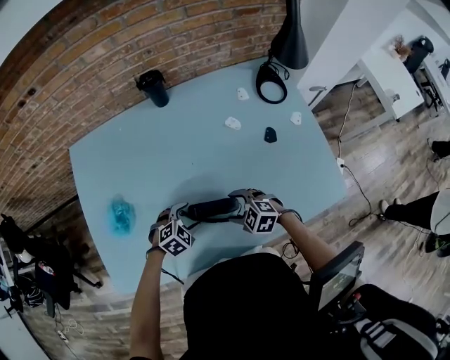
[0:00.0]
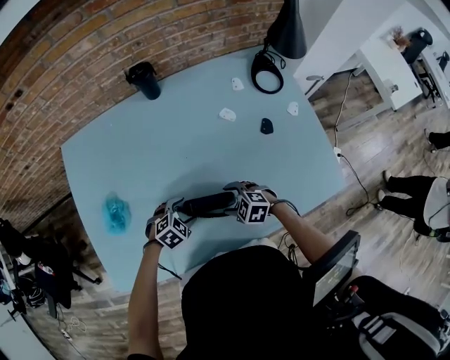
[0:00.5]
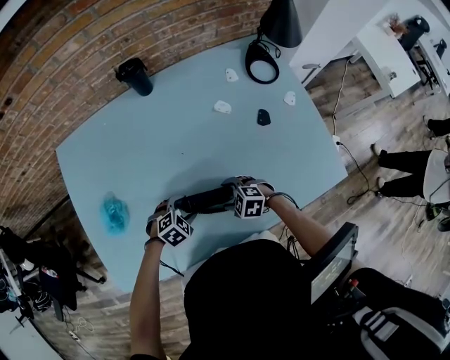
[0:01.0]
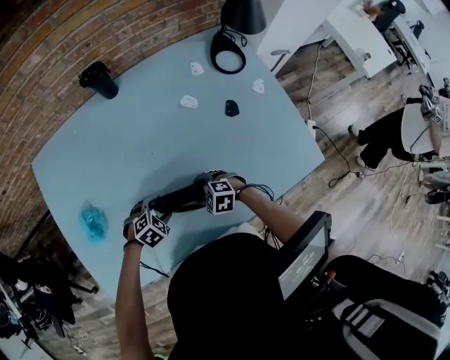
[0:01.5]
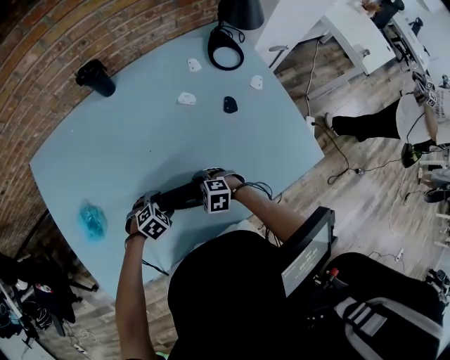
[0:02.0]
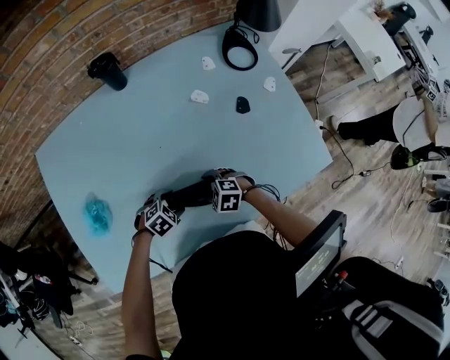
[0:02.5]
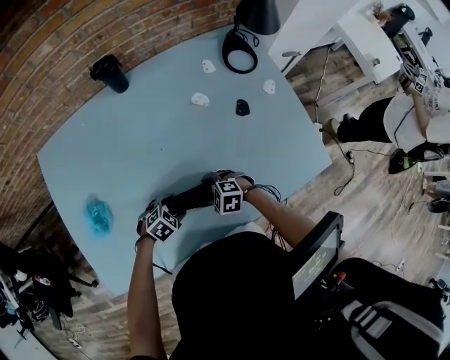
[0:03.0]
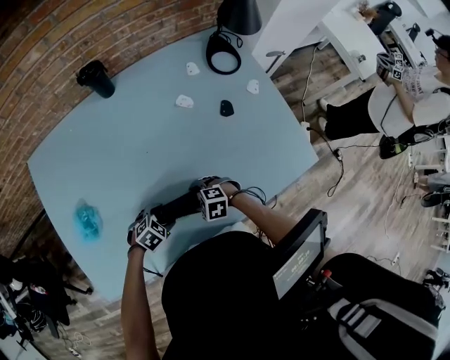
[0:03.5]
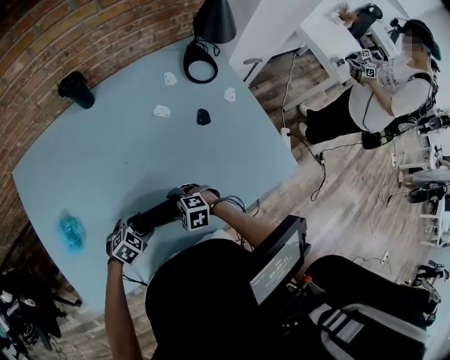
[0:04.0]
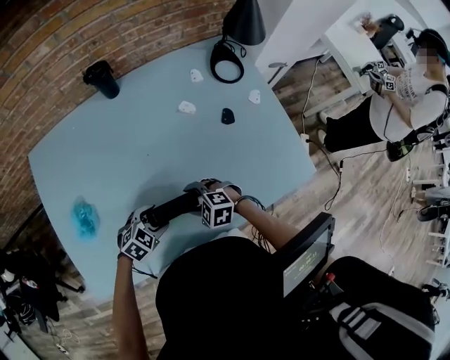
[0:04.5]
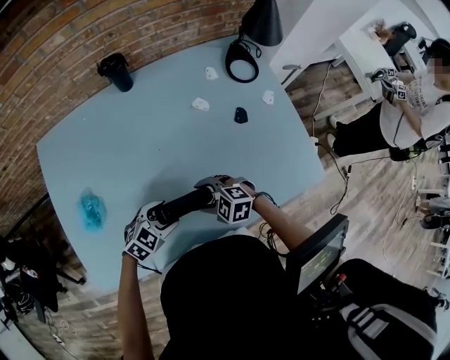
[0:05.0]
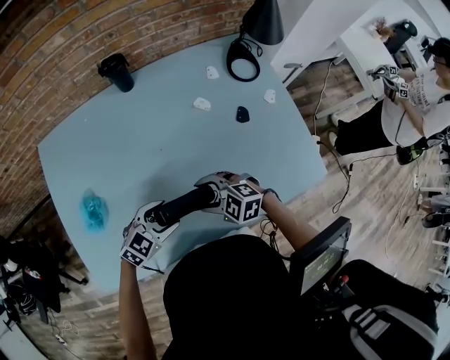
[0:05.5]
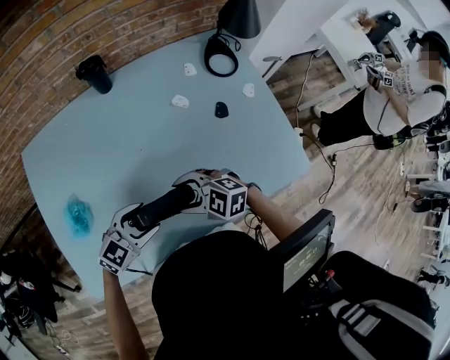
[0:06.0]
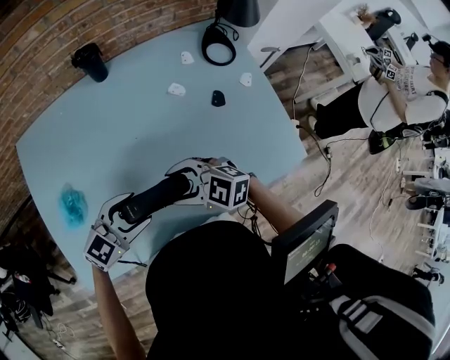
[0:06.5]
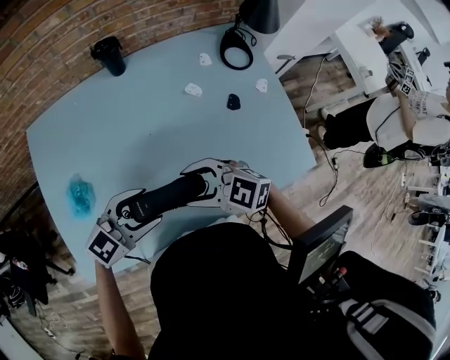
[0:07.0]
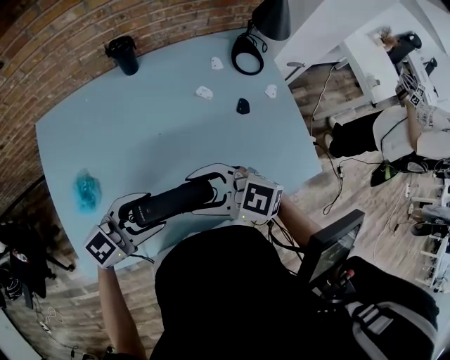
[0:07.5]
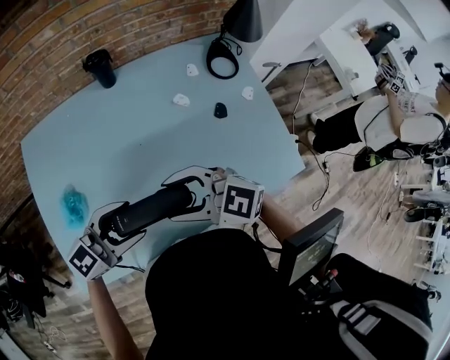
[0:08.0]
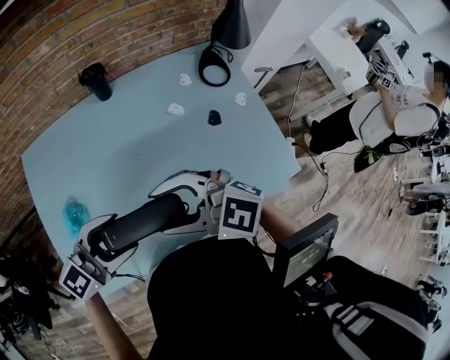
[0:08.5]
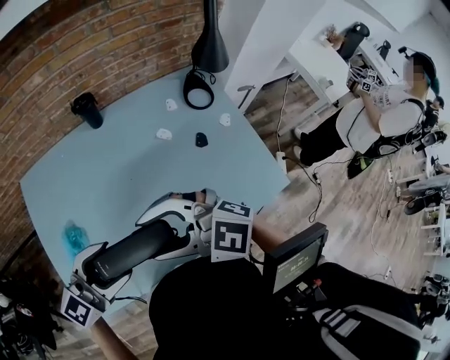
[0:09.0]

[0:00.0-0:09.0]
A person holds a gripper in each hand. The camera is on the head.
0:00.0 to 0:02.0: Both grippers move downward, approximately 5 cm.
0:02.0 to 0:04.5: Both grippers move upward, roughly 5 cm.
0:04.5 to 0:07.0: Both grippers travel together upward, roughly 20 cm. The right gripper rotates roughly 30 degrees, while the left gripper angles its fingers upward, by roughly 30 degrees.
0:07.0 to 0:09.0: The grippers both shift upward by approximately 15 cm. The left gripper changes its angle by approximately 20 degrees, while the right gripper rotates roughly 20 degrees.

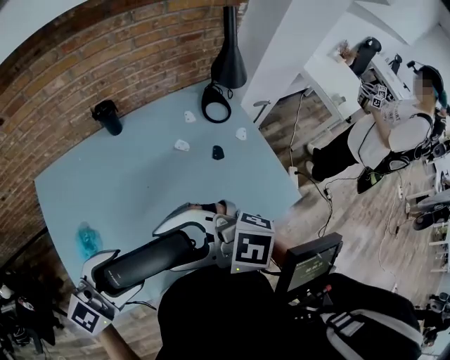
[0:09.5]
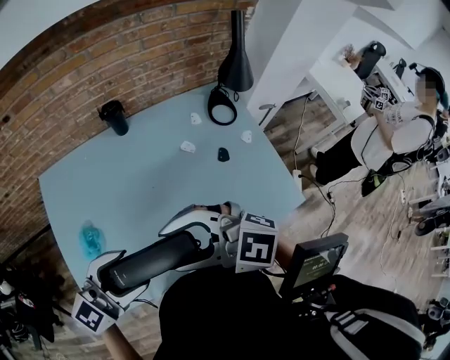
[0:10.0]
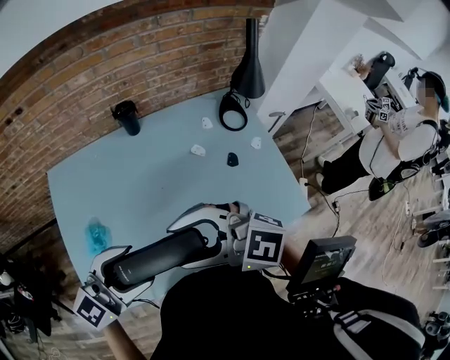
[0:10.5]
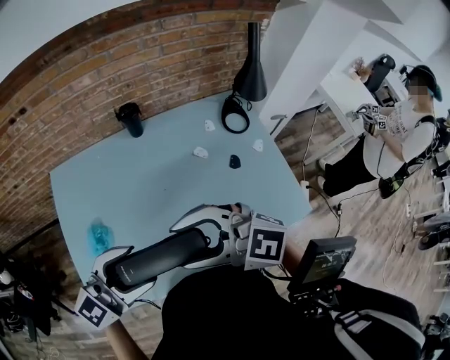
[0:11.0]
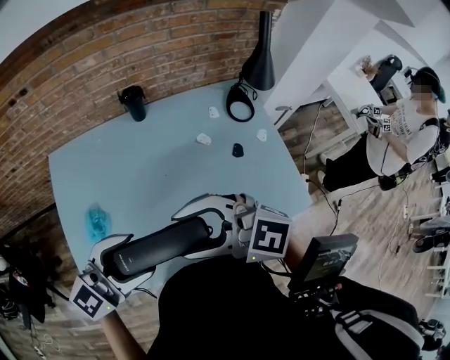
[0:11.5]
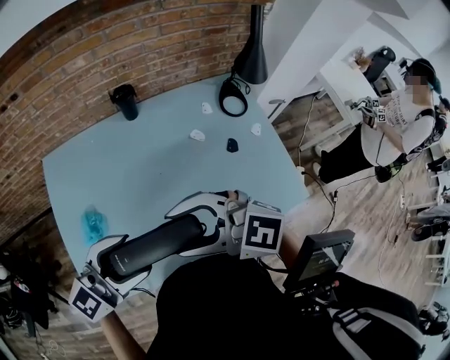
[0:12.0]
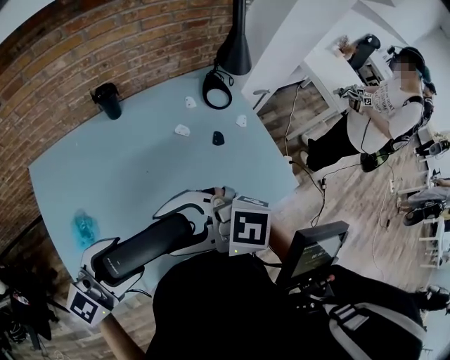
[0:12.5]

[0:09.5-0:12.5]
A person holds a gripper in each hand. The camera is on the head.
0:09.5 to 0:12.5: There are only small adjustments of the grippers.

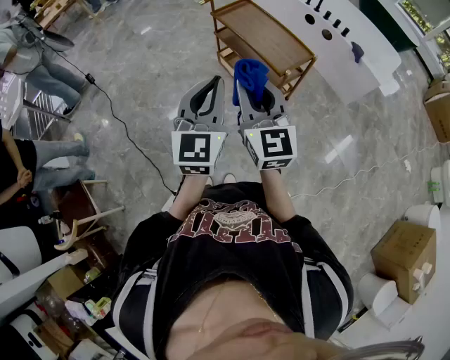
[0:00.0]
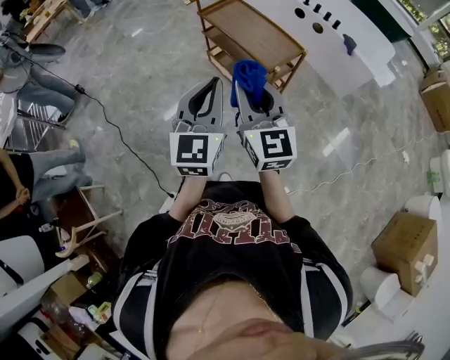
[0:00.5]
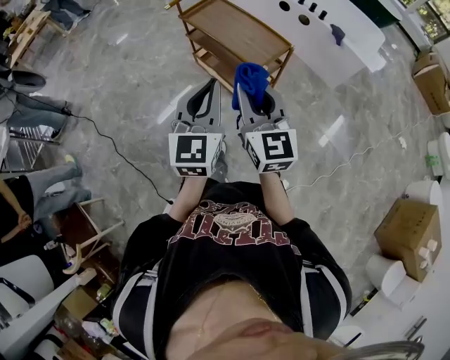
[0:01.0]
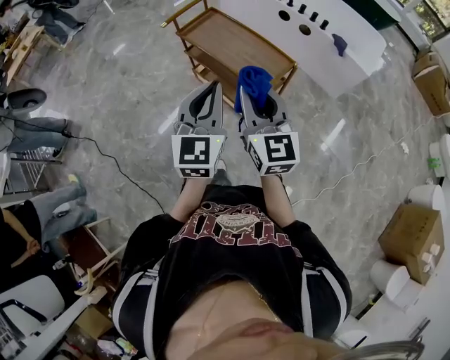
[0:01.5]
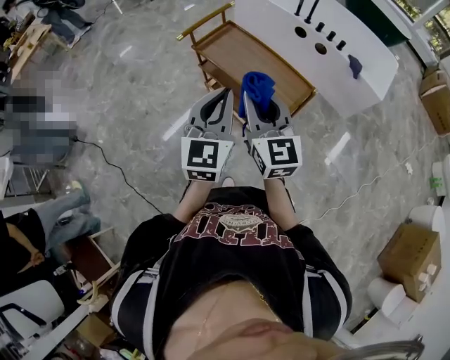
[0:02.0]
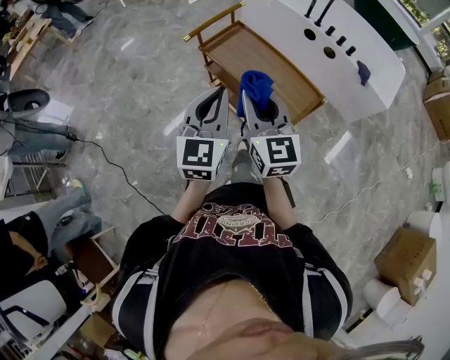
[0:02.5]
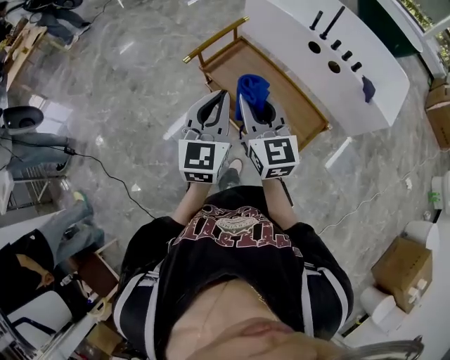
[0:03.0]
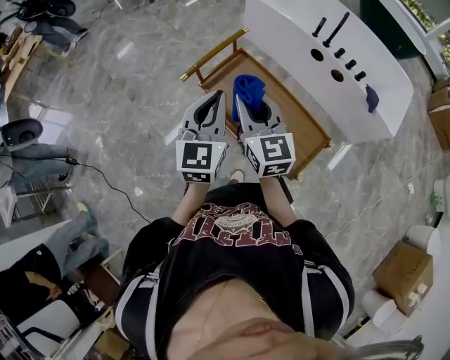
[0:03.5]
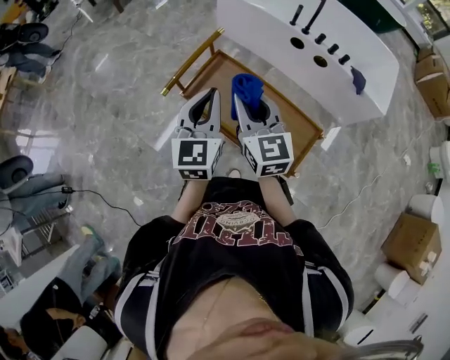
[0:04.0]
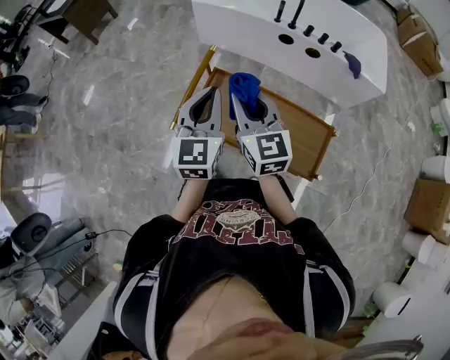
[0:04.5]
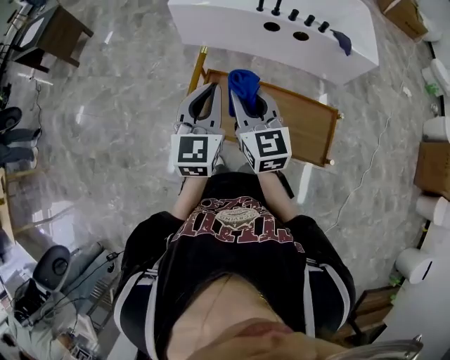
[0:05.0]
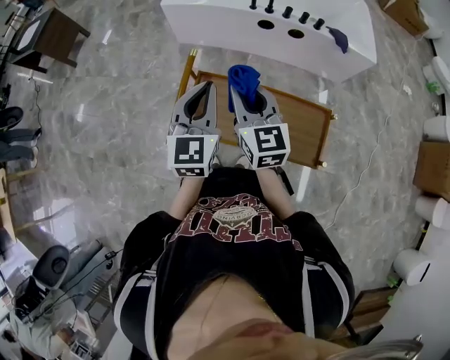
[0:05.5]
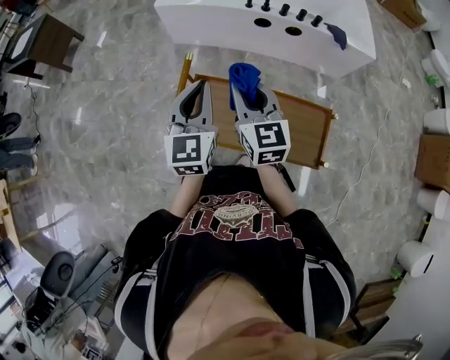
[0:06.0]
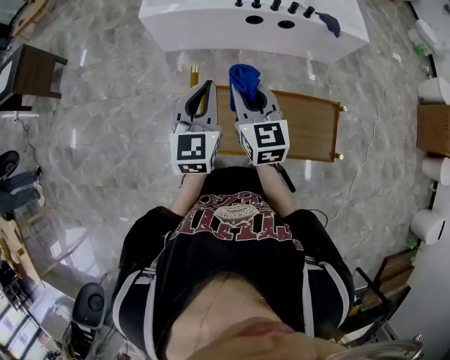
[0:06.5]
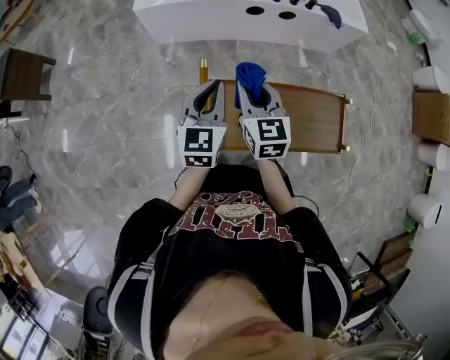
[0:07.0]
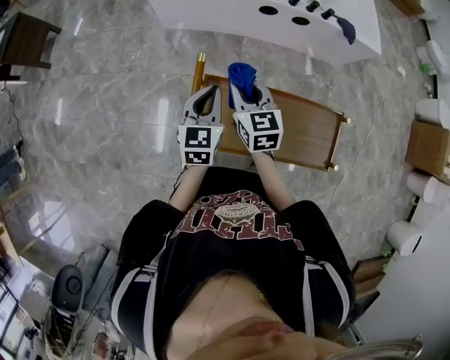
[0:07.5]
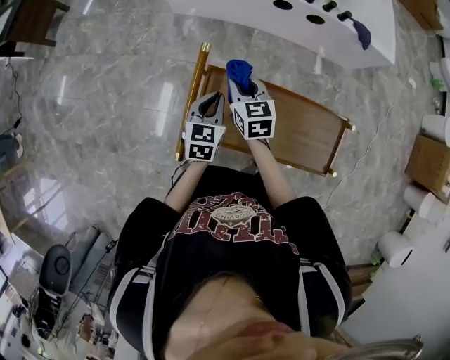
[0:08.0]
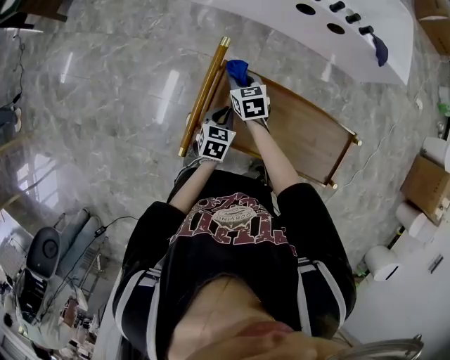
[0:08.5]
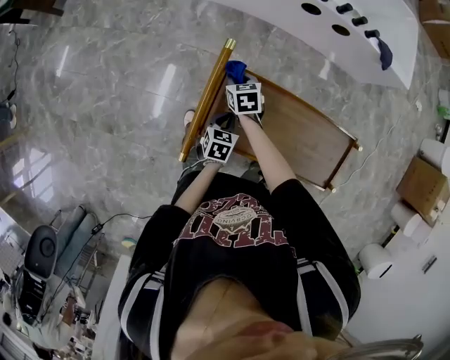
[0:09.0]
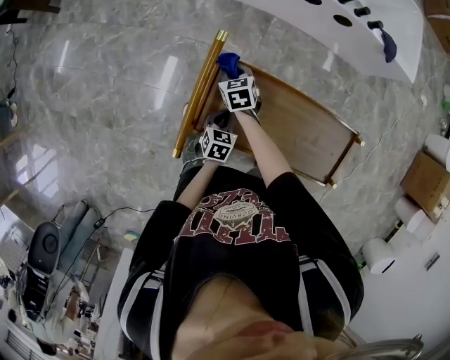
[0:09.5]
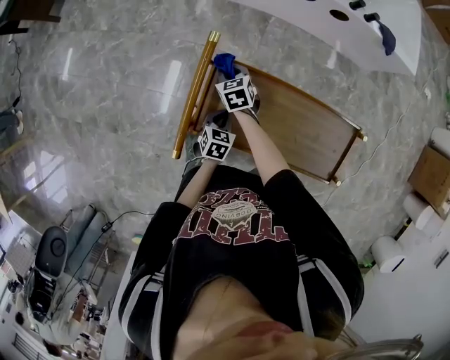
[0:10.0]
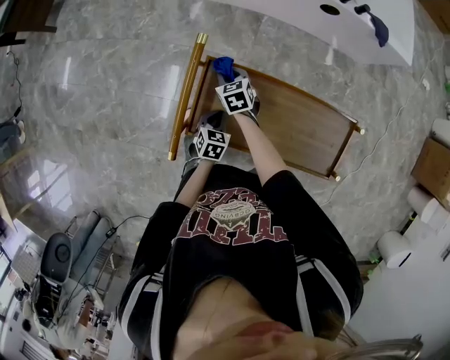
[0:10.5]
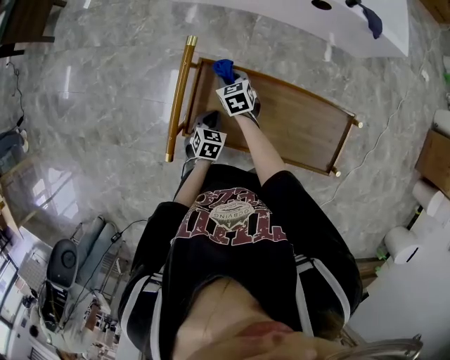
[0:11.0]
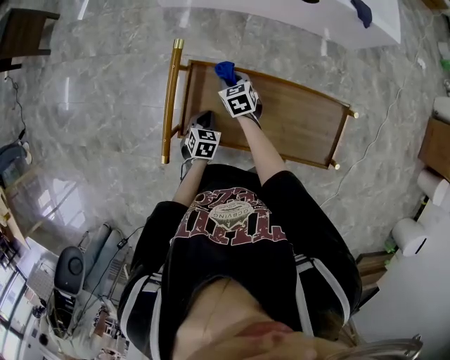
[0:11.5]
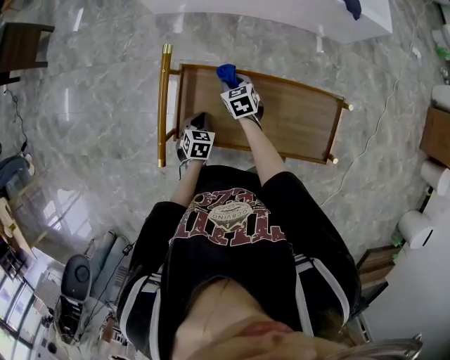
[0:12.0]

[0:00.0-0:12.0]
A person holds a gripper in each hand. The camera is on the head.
0:00.0 to 0:02.0: Both grippers travel together forward, roughly 30 cm.
0:02.0 to 0:04.0: Both grippers travel together forward, approximately 35 cm.
0:04.0 to 0:06.0: Both grippers move forward, some 20 cm. The left gripper turns by approximately 20 degrees, while the right gripper rotates about 30 degrees.
0:06.0 to 0:08.0: The left gripper shifts approximately 25 cm downward, and changes its angle by roughly 30 degrees. Meanwhile the right gripper heads downward, forward and to the left, covering about 25 cm, and swivels approximately 20 degrees.
0:08.0 to 0:10.0: The two grippers go about 20 cm downward. The right gripper changes its angle by approximately 20 degrees. The left gripper changes its angle by approximately 20 degrees.
0:10.0 to 0:12.0: The right gripper travels to the right by roughly 15 cm.

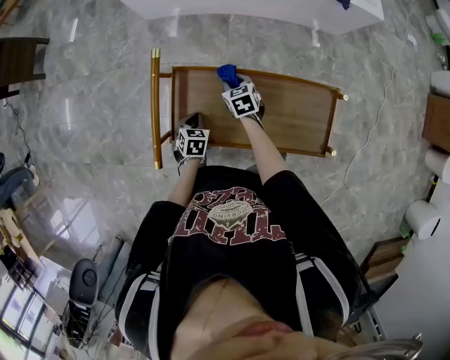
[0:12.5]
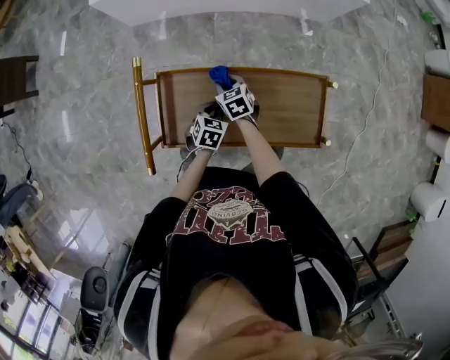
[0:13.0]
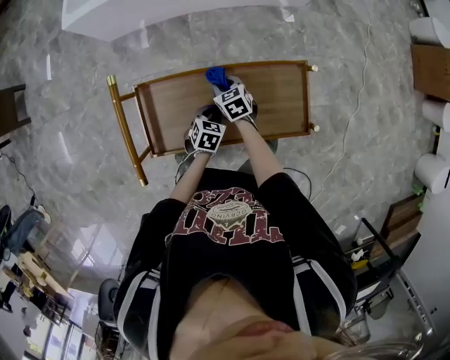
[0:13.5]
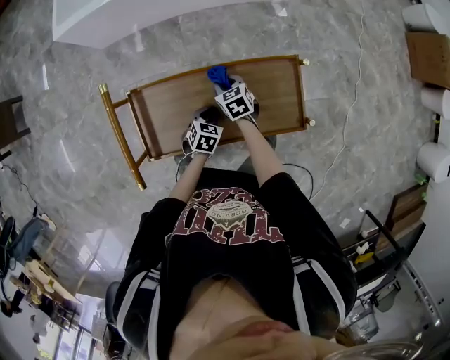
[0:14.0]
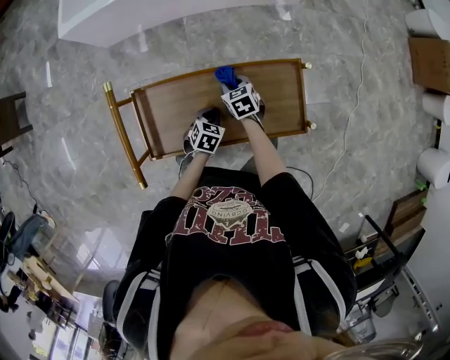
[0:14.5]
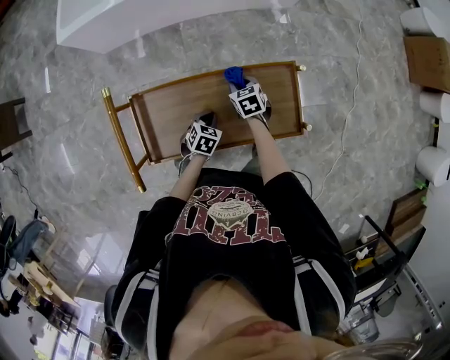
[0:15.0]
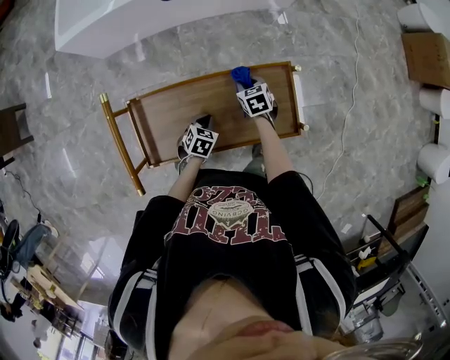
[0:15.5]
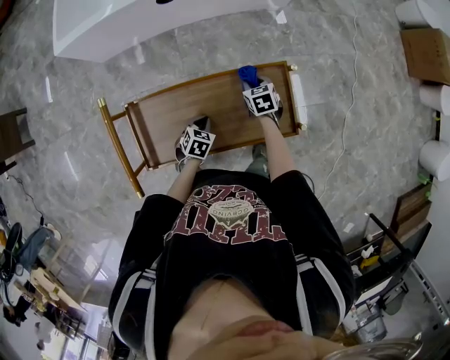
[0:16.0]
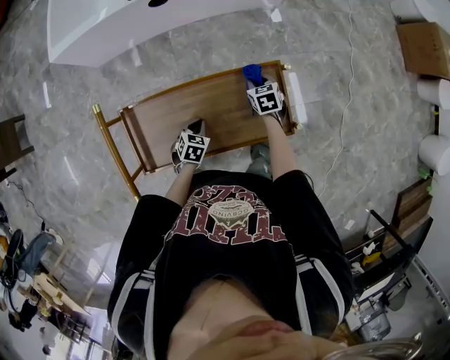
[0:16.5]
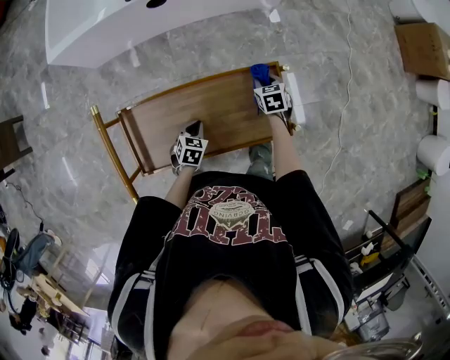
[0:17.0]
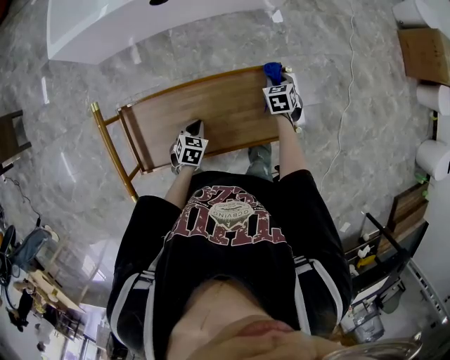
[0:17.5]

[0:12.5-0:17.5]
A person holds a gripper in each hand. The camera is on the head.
0:12.5 to 0:15.0: The left gripper moves about 20 cm, and rotates some 30 degrees. Meanwhile the right gripper shifts by about 20 cm.
0:15.0 to 0:17.5: The right gripper heads to the right, covering roughly 20 cm.
